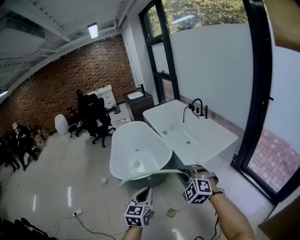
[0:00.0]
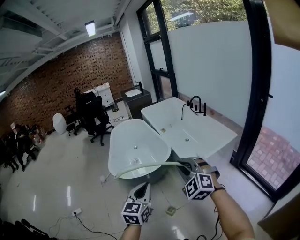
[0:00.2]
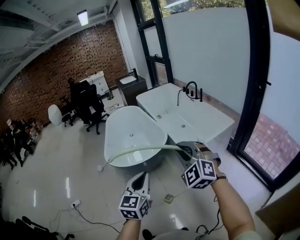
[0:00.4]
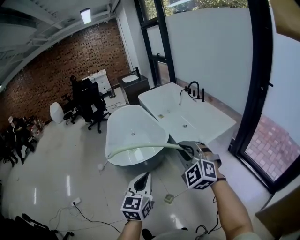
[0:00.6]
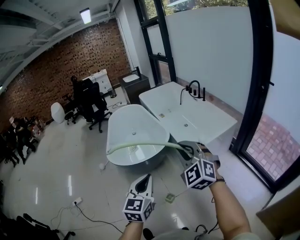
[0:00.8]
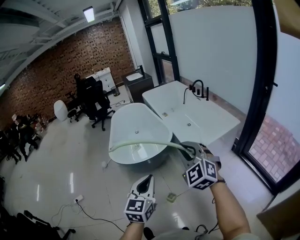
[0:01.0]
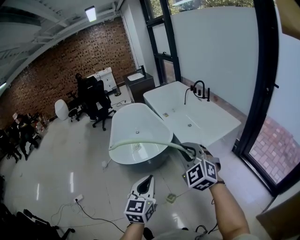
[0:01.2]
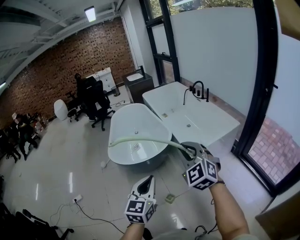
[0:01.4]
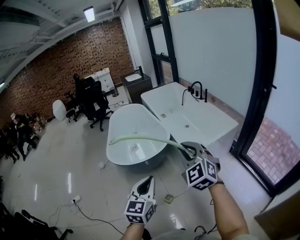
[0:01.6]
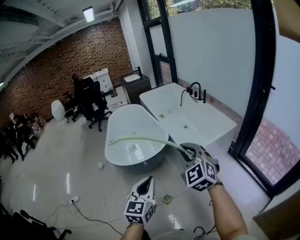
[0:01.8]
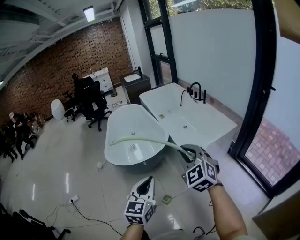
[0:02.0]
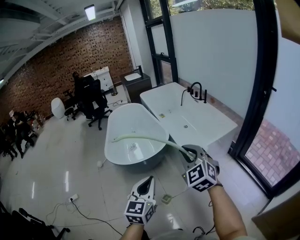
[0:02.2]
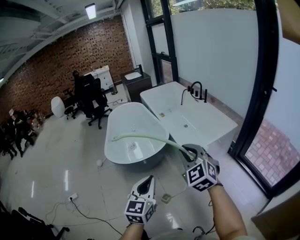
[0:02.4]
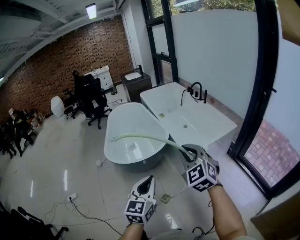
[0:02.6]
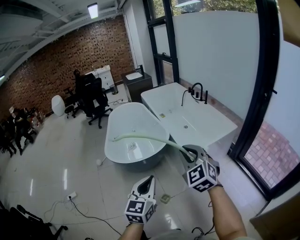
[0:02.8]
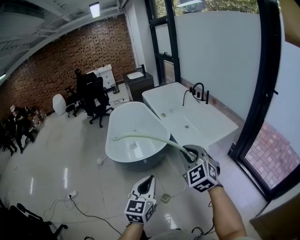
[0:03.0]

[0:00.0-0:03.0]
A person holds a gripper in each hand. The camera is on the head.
0:00.0 to 0:01.6: The right gripper is displaced upward by roughly 5 cm.
0:01.6 to 0:03.0: The grippers make only small movements.

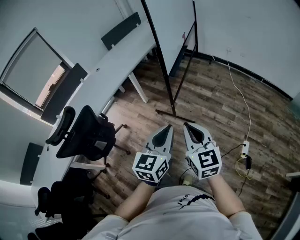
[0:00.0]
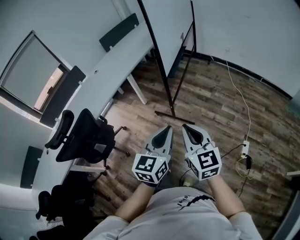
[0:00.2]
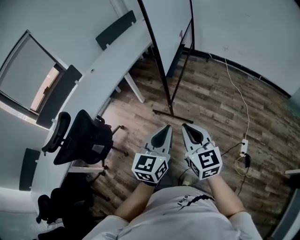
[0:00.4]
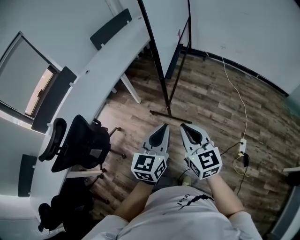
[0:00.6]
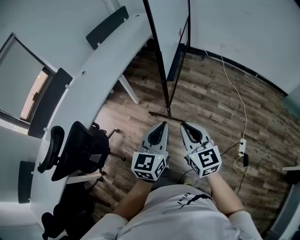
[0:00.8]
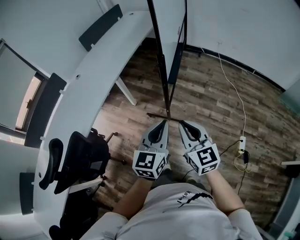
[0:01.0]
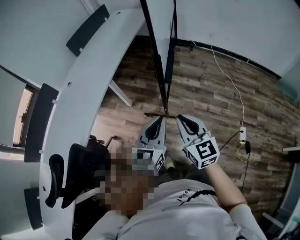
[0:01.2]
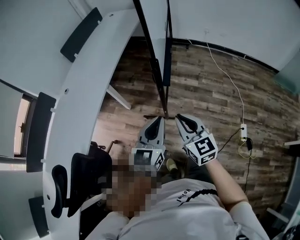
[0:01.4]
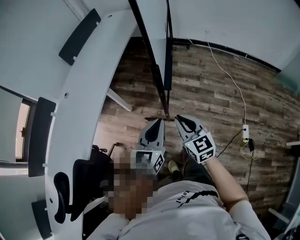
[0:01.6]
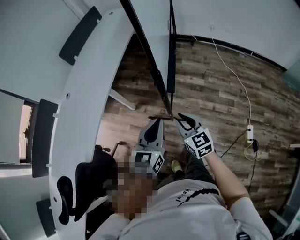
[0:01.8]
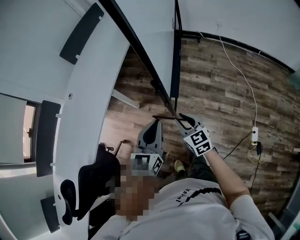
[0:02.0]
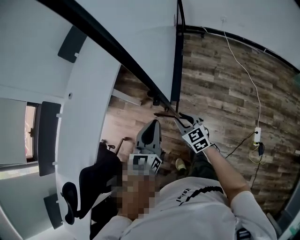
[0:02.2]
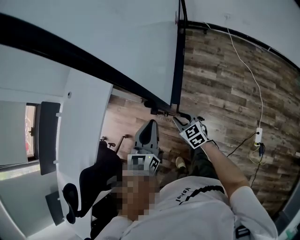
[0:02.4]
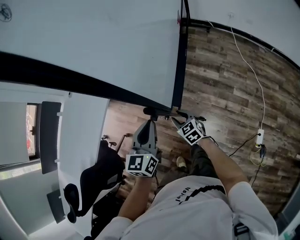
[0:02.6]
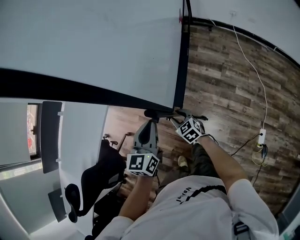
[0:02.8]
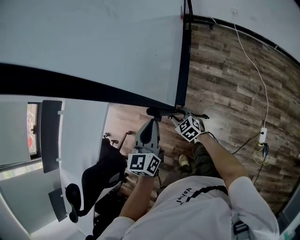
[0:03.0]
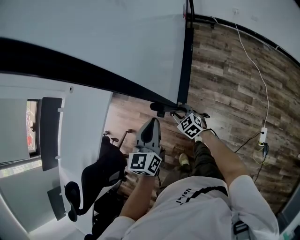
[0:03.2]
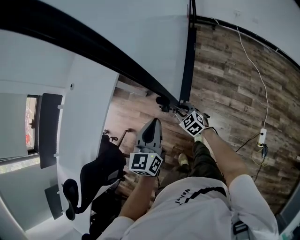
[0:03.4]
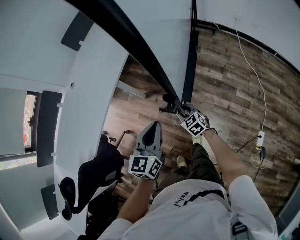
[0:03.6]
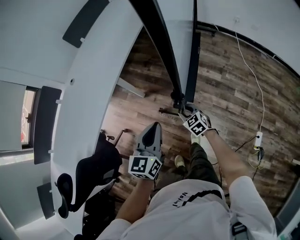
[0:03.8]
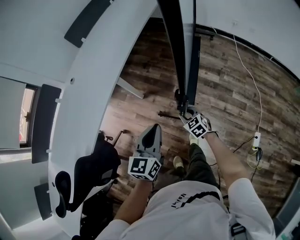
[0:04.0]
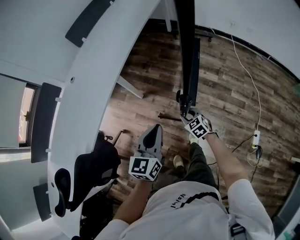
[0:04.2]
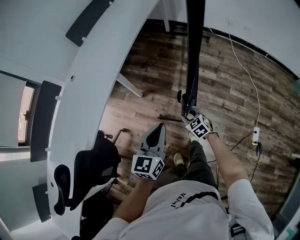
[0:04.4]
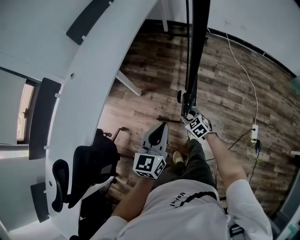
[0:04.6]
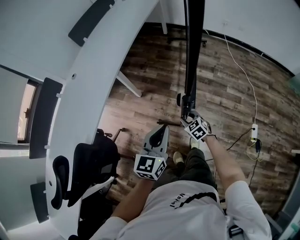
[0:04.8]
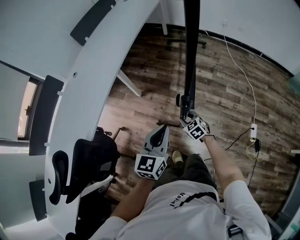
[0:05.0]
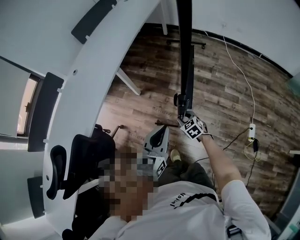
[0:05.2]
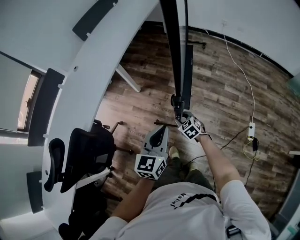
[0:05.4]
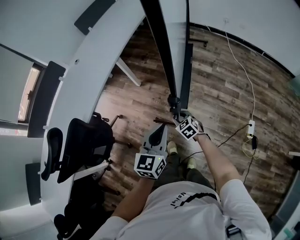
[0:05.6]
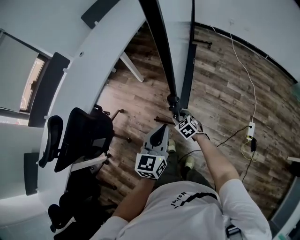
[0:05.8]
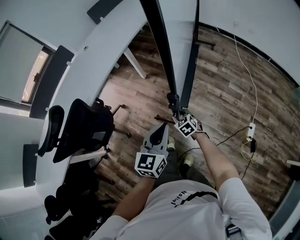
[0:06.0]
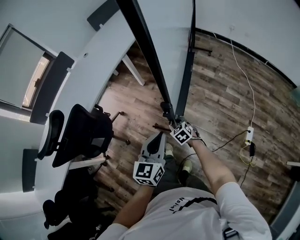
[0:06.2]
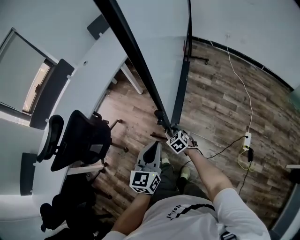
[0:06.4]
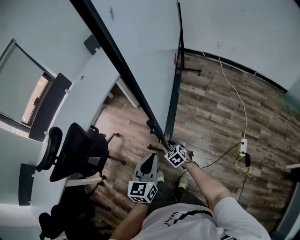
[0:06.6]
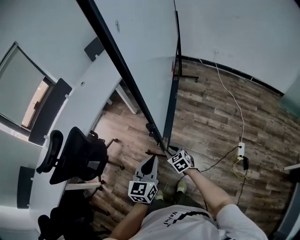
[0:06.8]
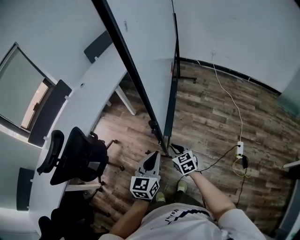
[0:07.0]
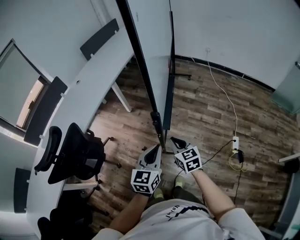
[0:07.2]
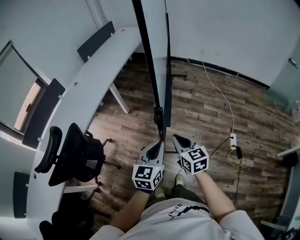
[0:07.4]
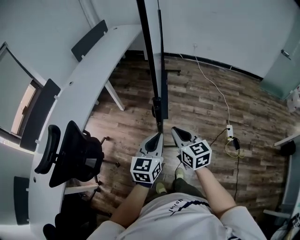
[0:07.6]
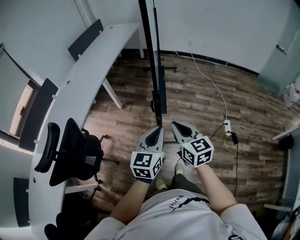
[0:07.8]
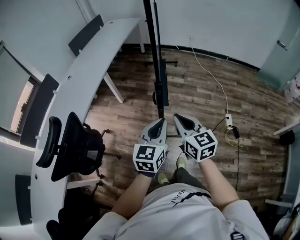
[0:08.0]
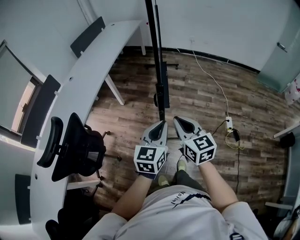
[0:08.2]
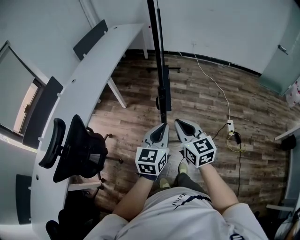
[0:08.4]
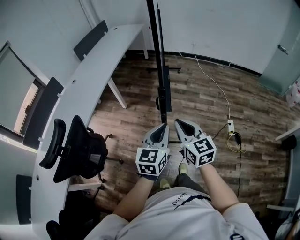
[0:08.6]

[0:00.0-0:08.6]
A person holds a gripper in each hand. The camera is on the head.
0:00.0 to 0:01.4: The grippers both shift forward and to the left by some 30 cm.
0:01.4 to 0:02.8: The right gripper goes about 35 cm downward and forward, turns by about 30 degrees, and opens; the left gripper goes about 20 cm forward and downward.
0:02.8 to 0:04.4: The left gripper shifts approximately 15 cm backward and to the left; the right gripper is displaced backward by approximately 10 cm.
0:04.4 to 0:05.8: Both grippers move backward, approximately 20 cm.
0:05.8 to 0:07.2: The left gripper travels backward by some 10 cm. Meanwhile the right gripper moves upward and backward, some 25 cm, turns by roughly 30 degrees, and closes up.
0:07.2 to 0:08.6: The left gripper heads upward and backward, covering roughly 10 cm. Meanwhile the right gripper goes roughly 20 cm upward and backward.

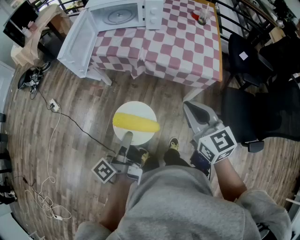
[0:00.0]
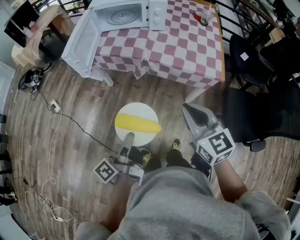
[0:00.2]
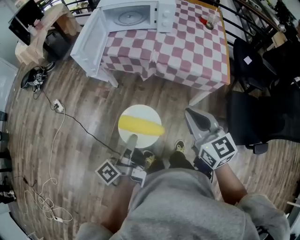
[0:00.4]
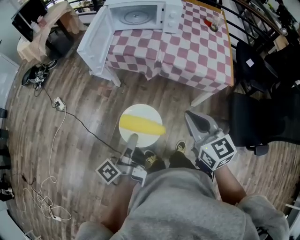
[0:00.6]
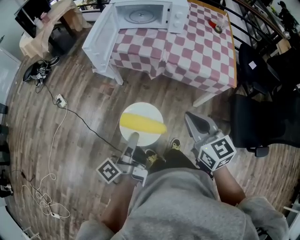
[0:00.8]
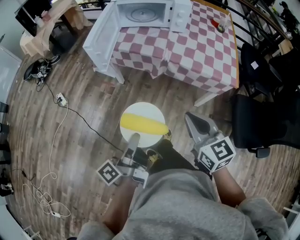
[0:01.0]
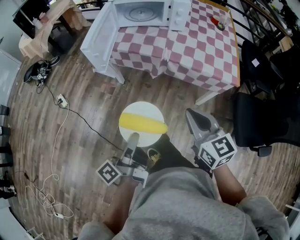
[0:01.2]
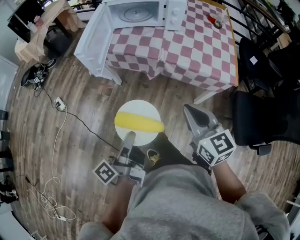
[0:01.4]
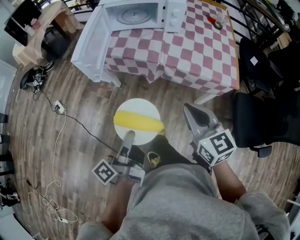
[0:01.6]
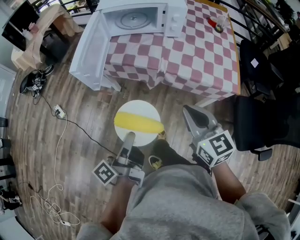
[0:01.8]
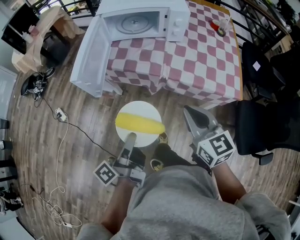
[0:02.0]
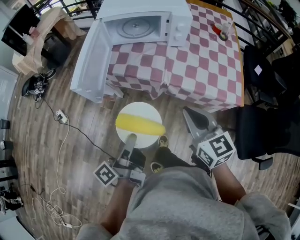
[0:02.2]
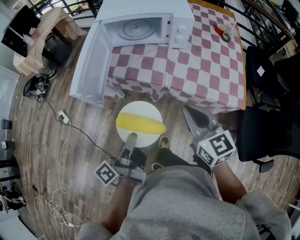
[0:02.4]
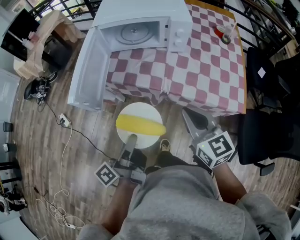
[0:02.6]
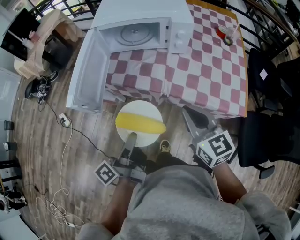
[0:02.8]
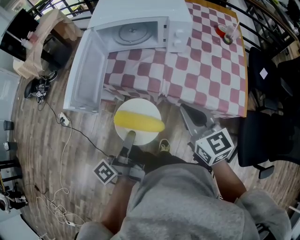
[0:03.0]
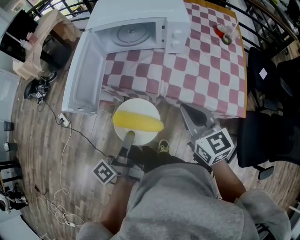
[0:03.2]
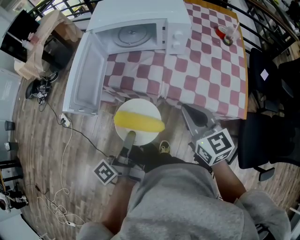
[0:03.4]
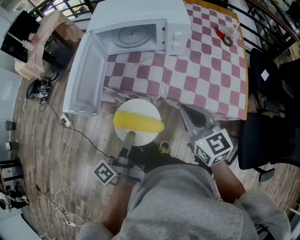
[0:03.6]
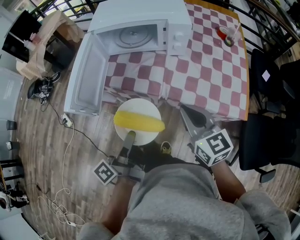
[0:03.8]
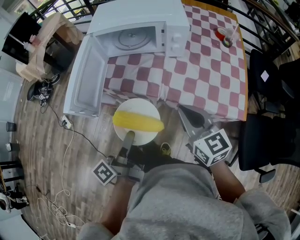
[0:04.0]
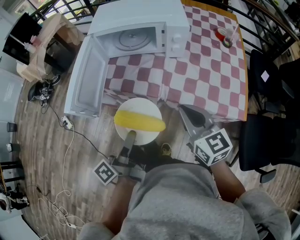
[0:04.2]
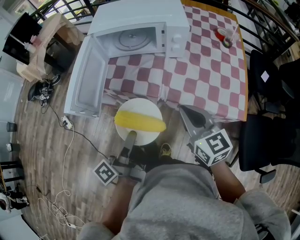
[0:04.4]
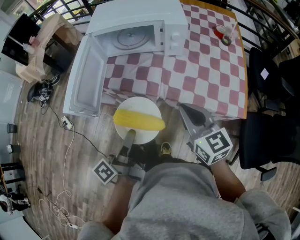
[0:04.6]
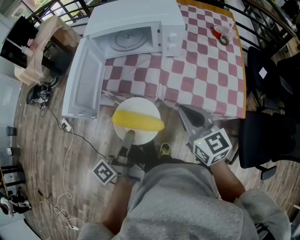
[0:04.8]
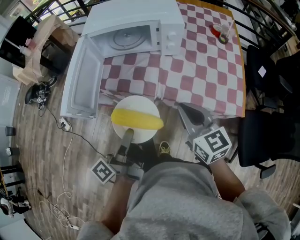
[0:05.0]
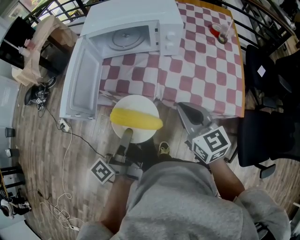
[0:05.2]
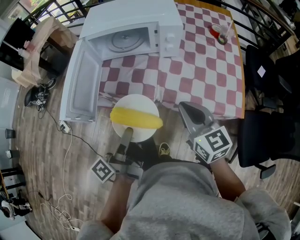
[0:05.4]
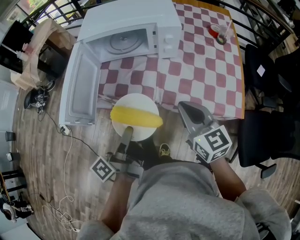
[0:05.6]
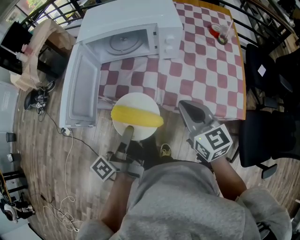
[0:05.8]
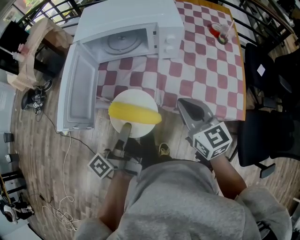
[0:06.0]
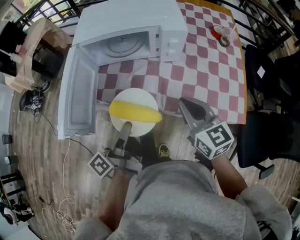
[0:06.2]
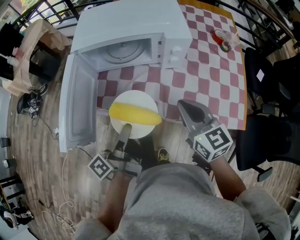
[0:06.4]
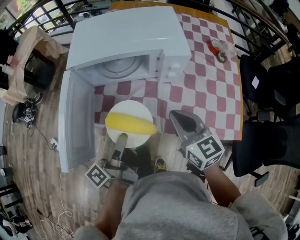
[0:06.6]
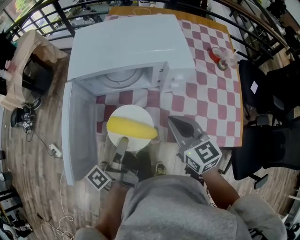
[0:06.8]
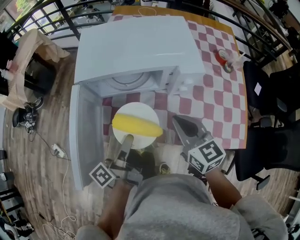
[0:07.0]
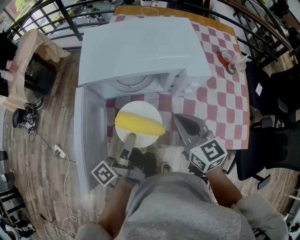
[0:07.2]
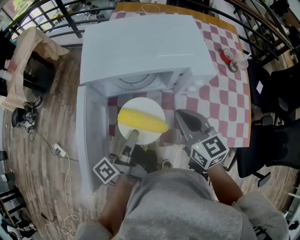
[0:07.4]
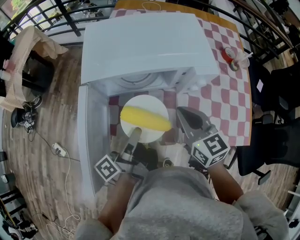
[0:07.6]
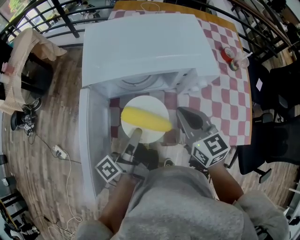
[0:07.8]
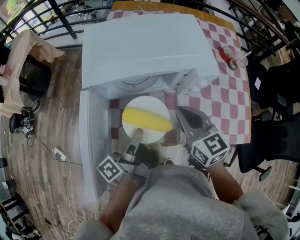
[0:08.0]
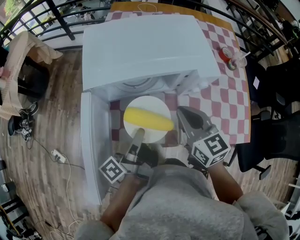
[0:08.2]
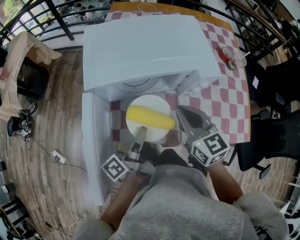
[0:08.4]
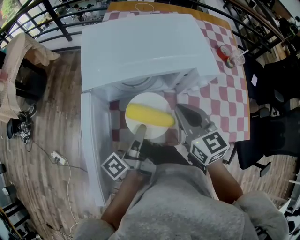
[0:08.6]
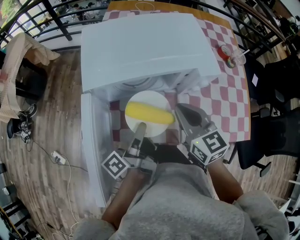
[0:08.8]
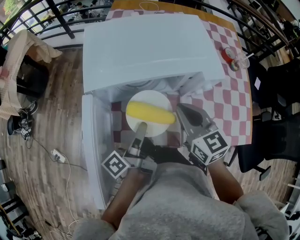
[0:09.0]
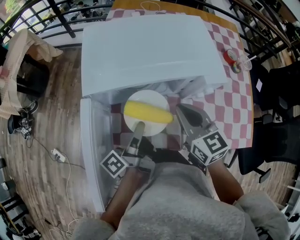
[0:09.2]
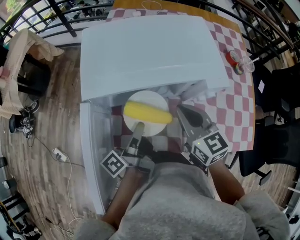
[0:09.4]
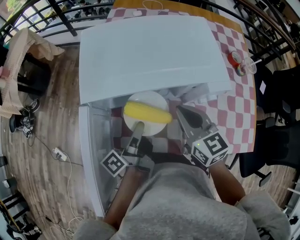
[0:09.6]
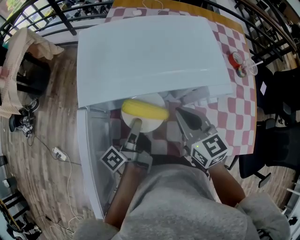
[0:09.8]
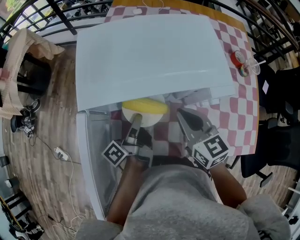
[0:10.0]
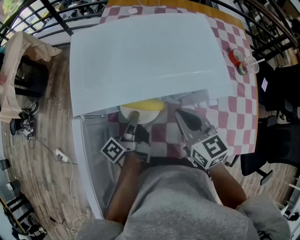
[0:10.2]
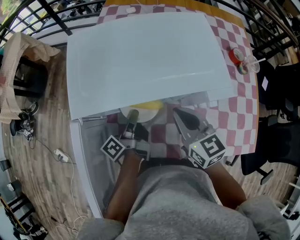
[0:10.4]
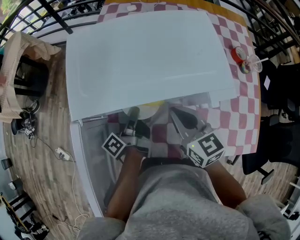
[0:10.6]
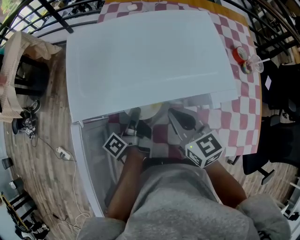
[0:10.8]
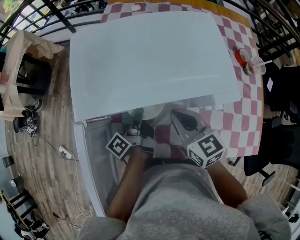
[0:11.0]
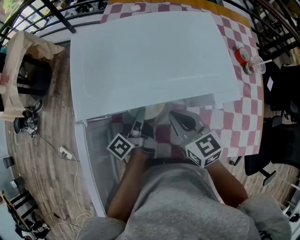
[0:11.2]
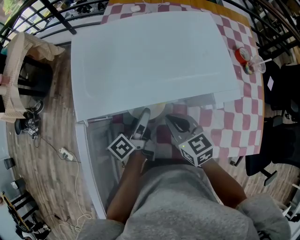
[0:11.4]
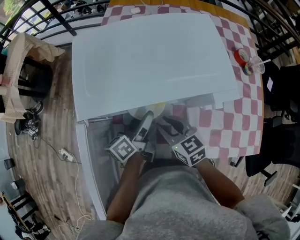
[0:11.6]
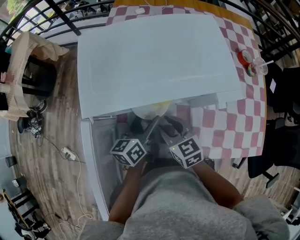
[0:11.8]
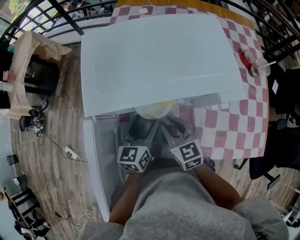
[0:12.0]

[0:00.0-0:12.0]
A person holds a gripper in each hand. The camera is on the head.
0:00.0 to 0:01.6: Both grippers travel together to the left and forward, about 10 cm.
0:01.6 to 0:03.0: Both grippers travel together forward, about 20 cm.
0:03.0 to 0:04.4: The grippers make only small movements.
0:04.4 to 0:06.0: Both grippers travel together forward, approximately 5 cm.
0:06.0 to 0:07.6: The right gripper heads forward and to the left, covering some 20 cm. Meanwhile the left gripper heads forward, covering roughly 20 cm.
0:07.6 to 0:09.0: The grippers move only a little.
0:09.0 to 0:10.4: The right gripper shifts roughly 5 cm forward; the left gripper moves forward and downward, approximately 15 cm.
0:10.4 to 0:12.0: The left gripper rotates around the line of its fingers by about 70 degrees, clockwise from behind, and opens; the right gripper heads downward and to the left, covering approximately 10 cm, and opens.
